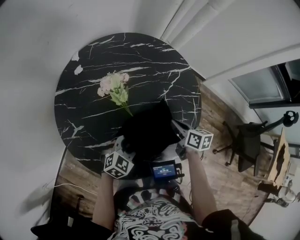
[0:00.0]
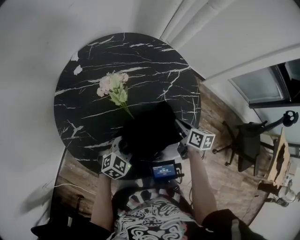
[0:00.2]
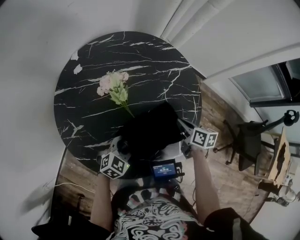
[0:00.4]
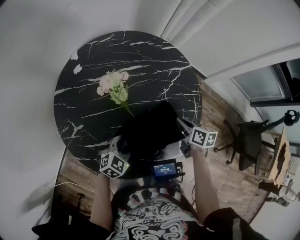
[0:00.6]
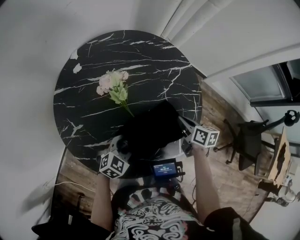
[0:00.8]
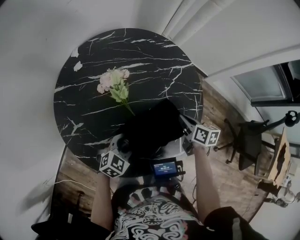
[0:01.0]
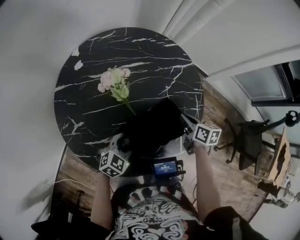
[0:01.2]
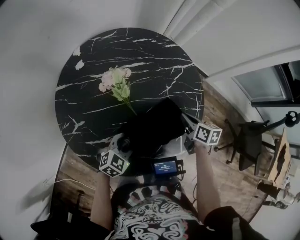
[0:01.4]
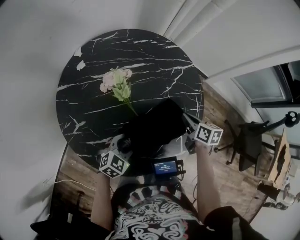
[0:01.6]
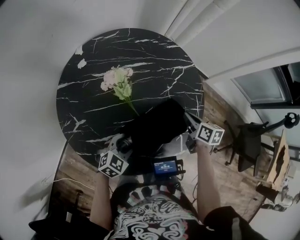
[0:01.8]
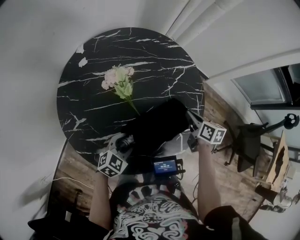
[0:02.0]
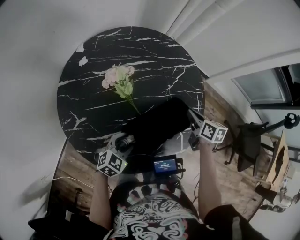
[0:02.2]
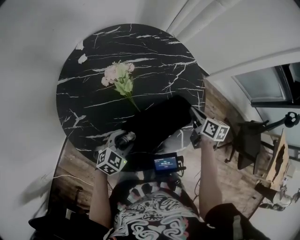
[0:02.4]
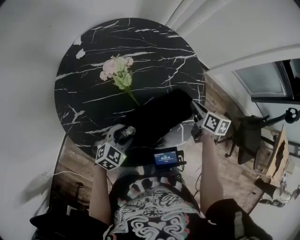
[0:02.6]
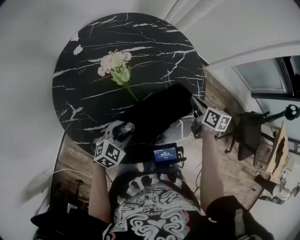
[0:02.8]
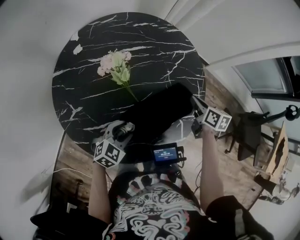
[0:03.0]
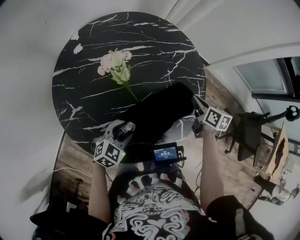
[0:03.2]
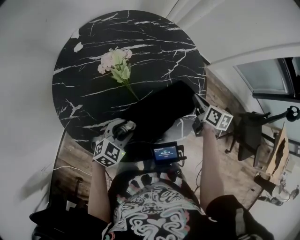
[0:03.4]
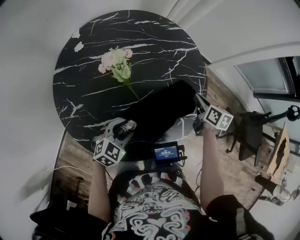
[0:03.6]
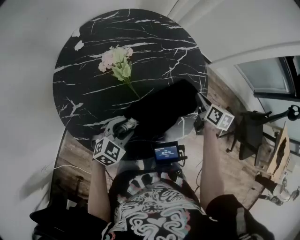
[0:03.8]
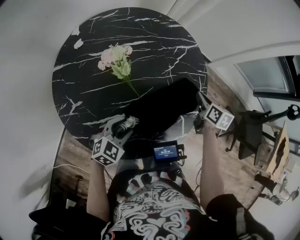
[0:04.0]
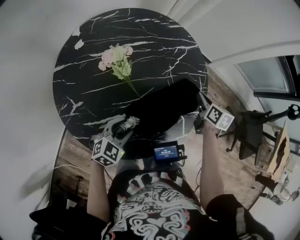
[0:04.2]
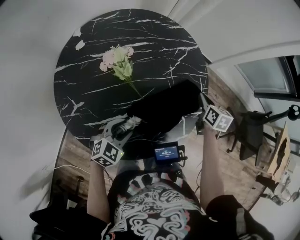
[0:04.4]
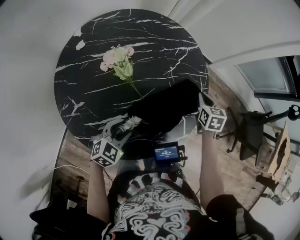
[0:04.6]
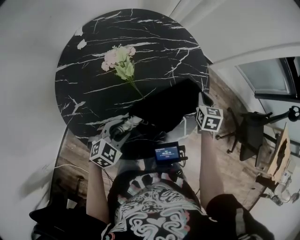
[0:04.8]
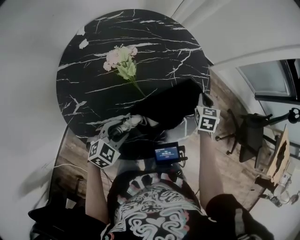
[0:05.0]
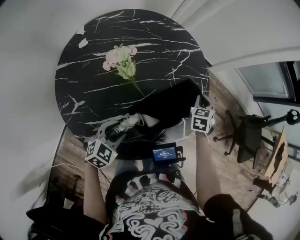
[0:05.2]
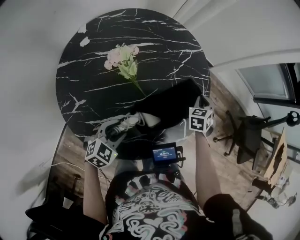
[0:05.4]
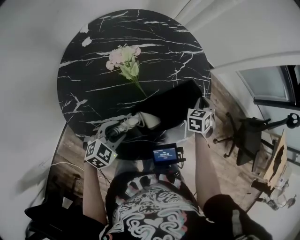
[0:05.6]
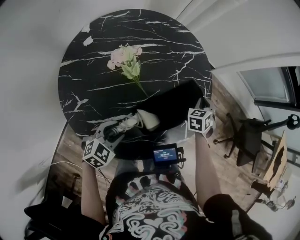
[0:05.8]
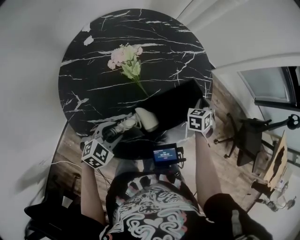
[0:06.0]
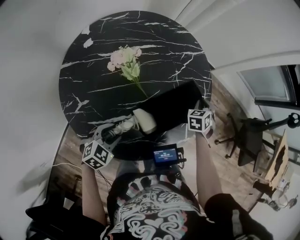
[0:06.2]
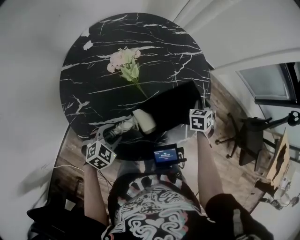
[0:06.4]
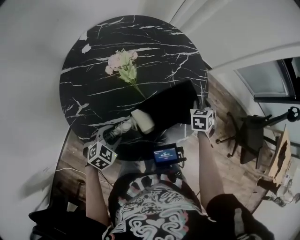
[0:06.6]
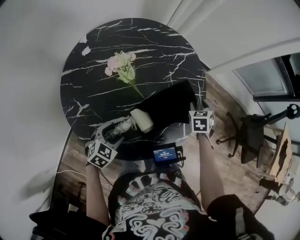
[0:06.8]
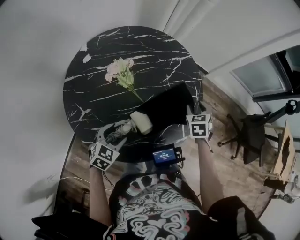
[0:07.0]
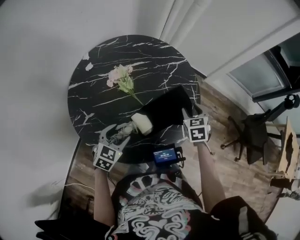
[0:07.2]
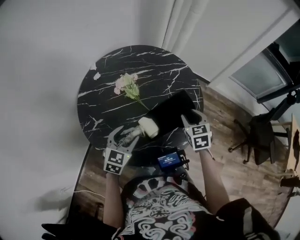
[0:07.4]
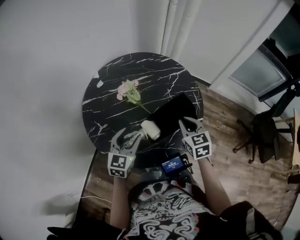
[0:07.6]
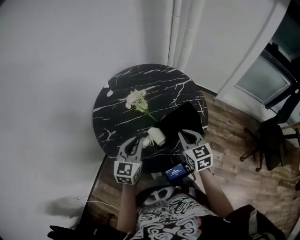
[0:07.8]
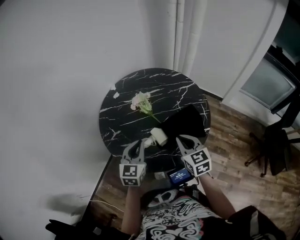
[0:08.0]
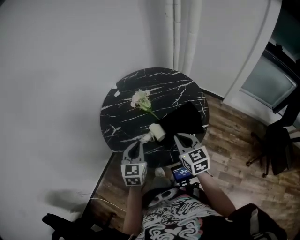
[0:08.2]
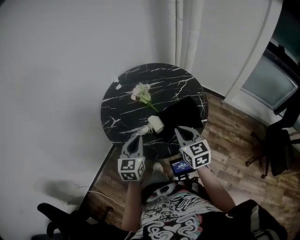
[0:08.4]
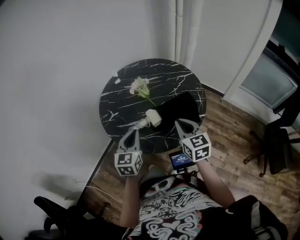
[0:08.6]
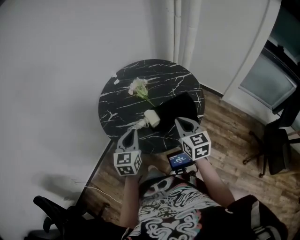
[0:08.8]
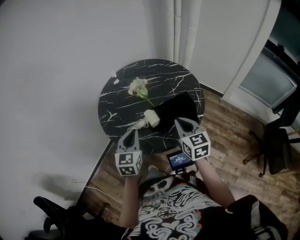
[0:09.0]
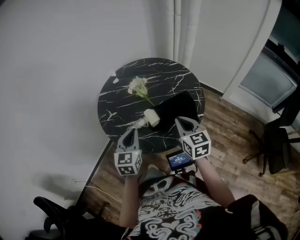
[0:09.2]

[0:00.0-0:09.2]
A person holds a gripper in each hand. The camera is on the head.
0:00.0 to 0:01.6: There are only small adjustments of the grippers.
0:01.6 to 0:03.0: The grippers make only small movements.
0:03.0 to 0:04.6: The right gripper changes its angle by roughly 30 degrees.
0:04.6 to 0:06.2: The right gripper turns by some 30 degrees; the left gripper travels backward by some 5 cm.
0:06.2 to 0:07.6: The left gripper travels upward by roughly 15 cm, and rotates about 40 degrees. The right gripper changes place by some 25 cm, rotates roughly 40 degrees, and opens and closes again.
0:07.6 to 0:09.2: The grippers both shift backward and upward by some 10 cm. The left gripper swivels approximately 20 degrees, and closes up.

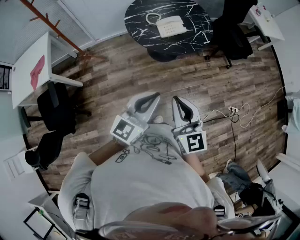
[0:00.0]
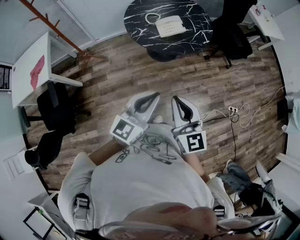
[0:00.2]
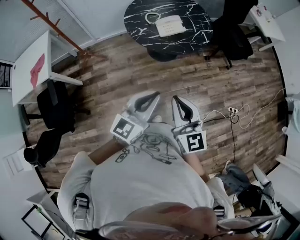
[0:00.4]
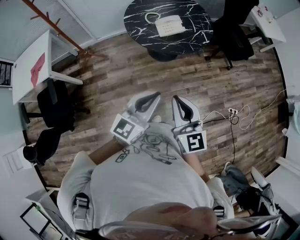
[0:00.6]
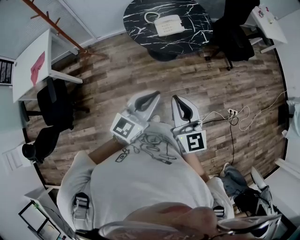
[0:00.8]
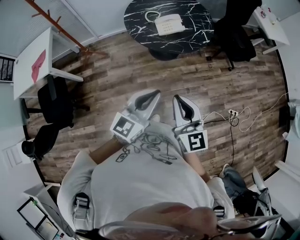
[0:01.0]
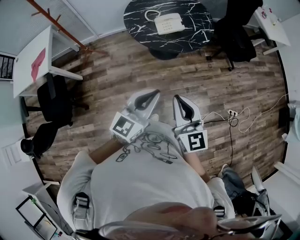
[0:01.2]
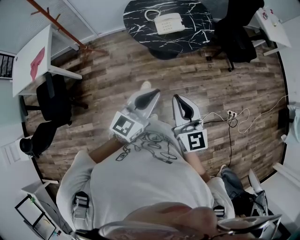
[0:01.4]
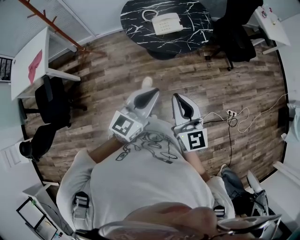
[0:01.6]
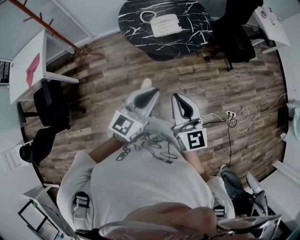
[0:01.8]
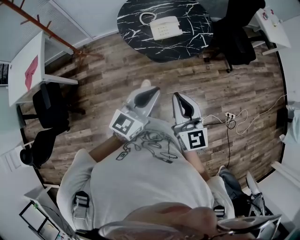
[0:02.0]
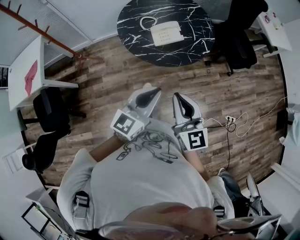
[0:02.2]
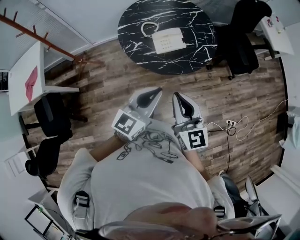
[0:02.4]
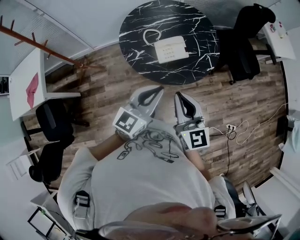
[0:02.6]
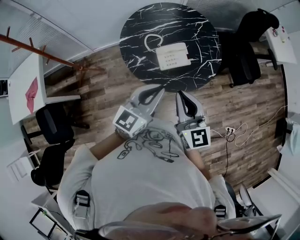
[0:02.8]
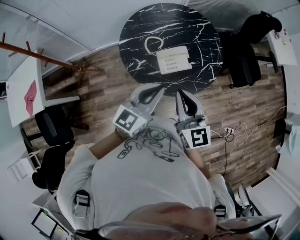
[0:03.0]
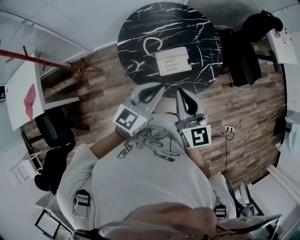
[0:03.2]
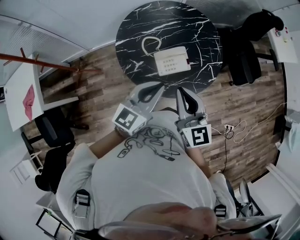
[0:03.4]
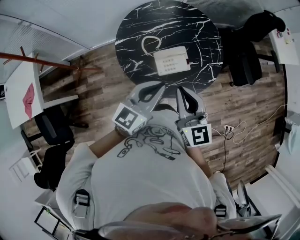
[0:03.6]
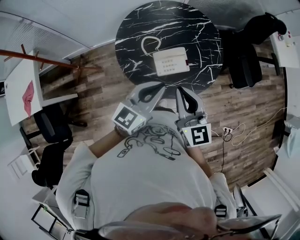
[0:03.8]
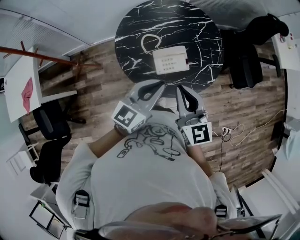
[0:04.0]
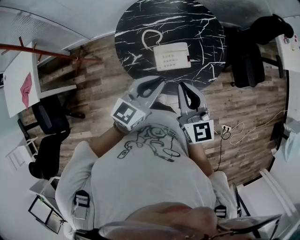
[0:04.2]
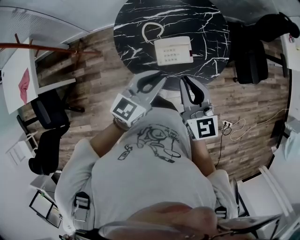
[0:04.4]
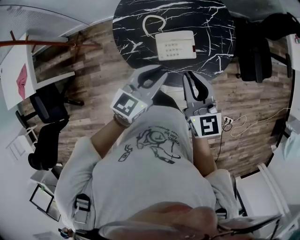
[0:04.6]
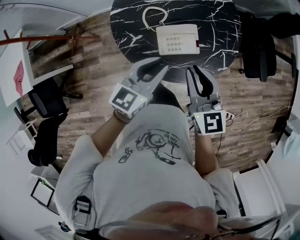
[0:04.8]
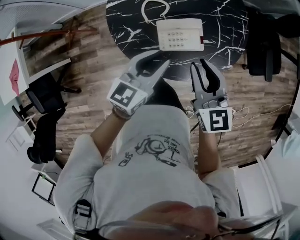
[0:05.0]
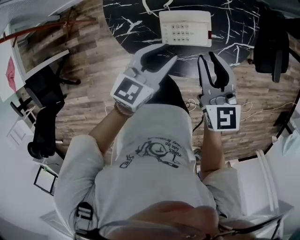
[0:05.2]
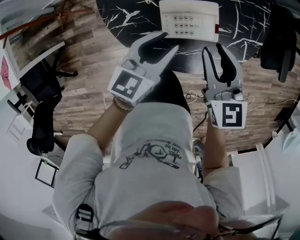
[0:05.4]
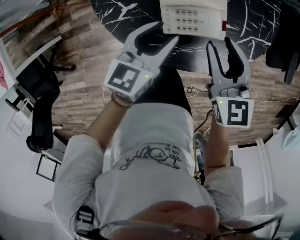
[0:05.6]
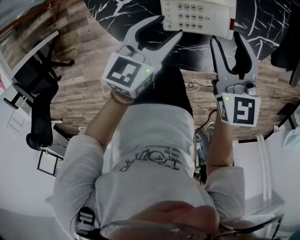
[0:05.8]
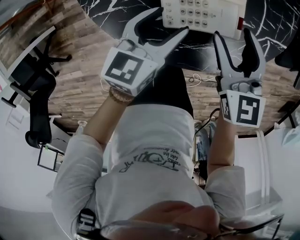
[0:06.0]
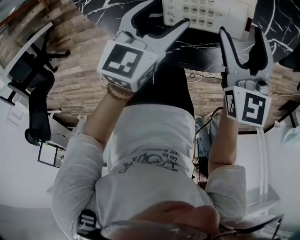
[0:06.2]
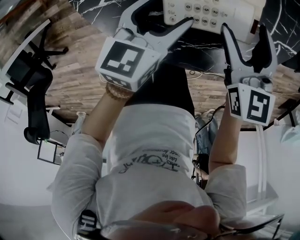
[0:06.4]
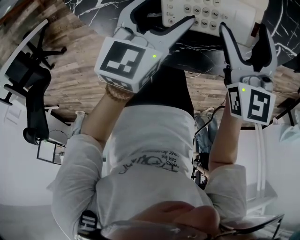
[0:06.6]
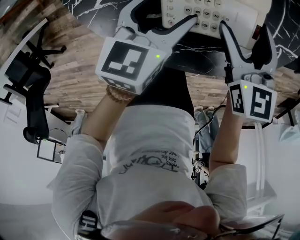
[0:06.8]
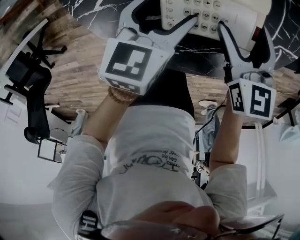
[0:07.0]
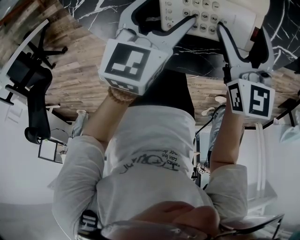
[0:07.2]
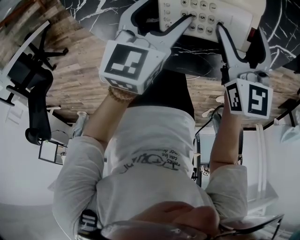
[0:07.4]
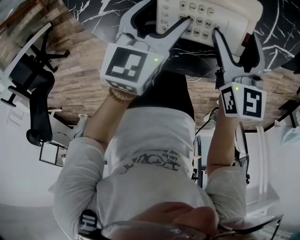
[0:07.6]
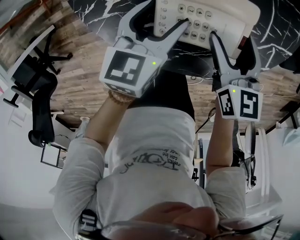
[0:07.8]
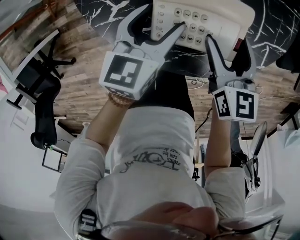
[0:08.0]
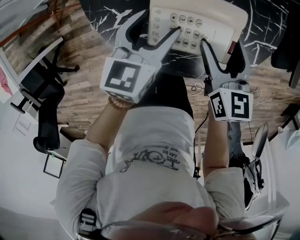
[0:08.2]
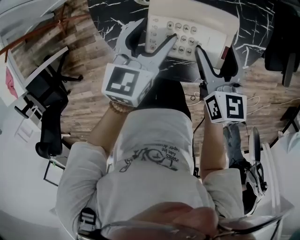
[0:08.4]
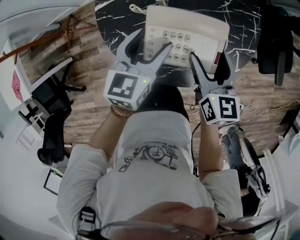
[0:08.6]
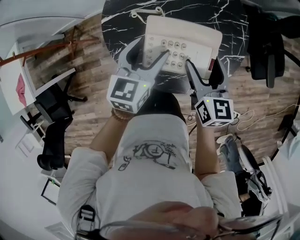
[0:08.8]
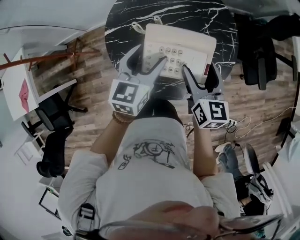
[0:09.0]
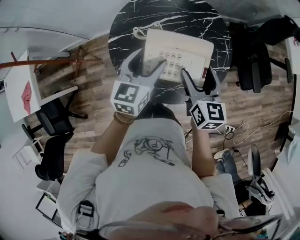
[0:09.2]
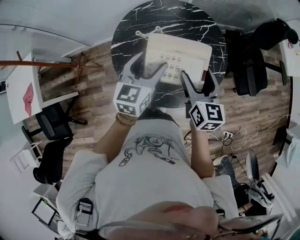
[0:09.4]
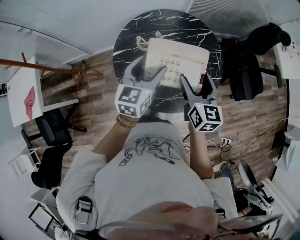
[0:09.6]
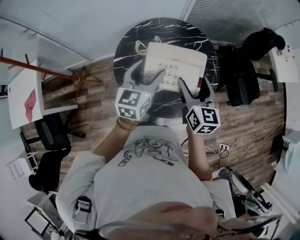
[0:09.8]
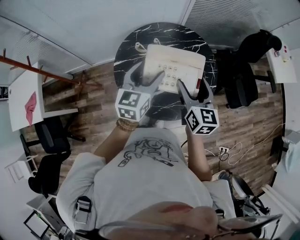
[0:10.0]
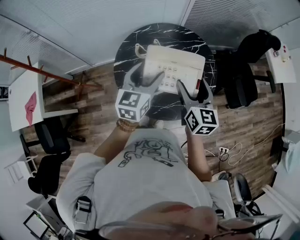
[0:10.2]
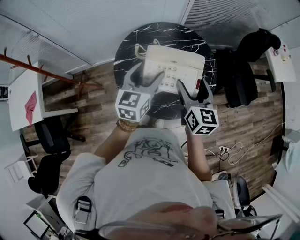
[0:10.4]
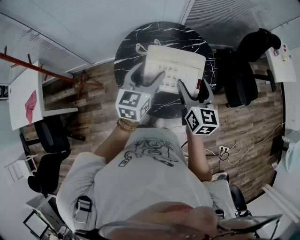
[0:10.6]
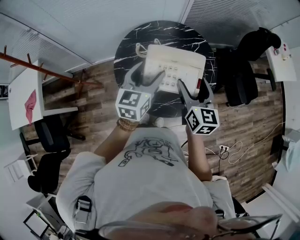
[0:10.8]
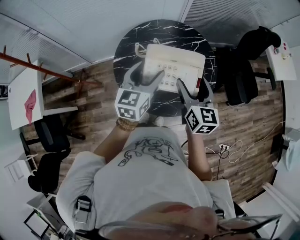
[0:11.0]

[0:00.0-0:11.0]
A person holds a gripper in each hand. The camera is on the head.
0:00.0 to 0:01.6: Both grippers move to the right, some 10 cm.
0:01.6 to 0:03.2: The pair of grippers is taken forward, some 40 cm.
0:03.2 to 0:04.8: Both grippers travel together downward and forward, roughly 15 cm.
0:04.8 to 0:06.2: The grippers both shift downward by approximately 30 cm. The right gripper opens its fingers; the left gripper swivels about 20 degrees, and opens.
0:06.2 to 0:07.8: The grippers stay close to where they were, moving slightly.
0:07.8 to 0:09.4: The two grippers go roughly 35 cm upward. The right gripper swivels about 20 degrees, while the left gripper changes its angle by approximately 20 degrees.
0:09.4 to 0:11.0: Both grippers move upward, approximately 5 cm.

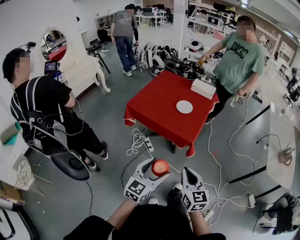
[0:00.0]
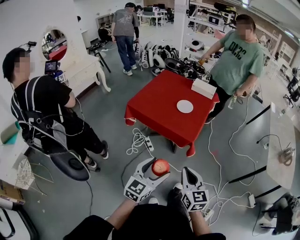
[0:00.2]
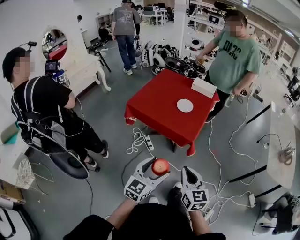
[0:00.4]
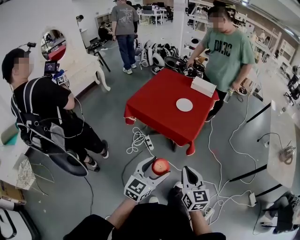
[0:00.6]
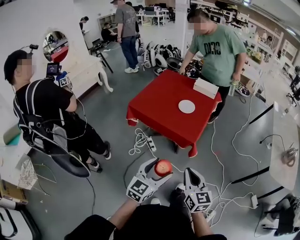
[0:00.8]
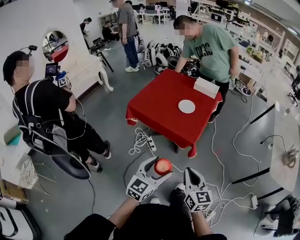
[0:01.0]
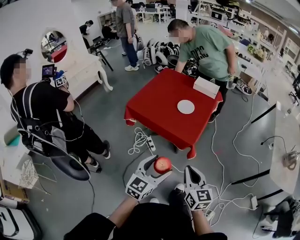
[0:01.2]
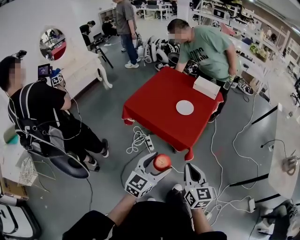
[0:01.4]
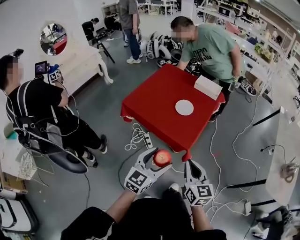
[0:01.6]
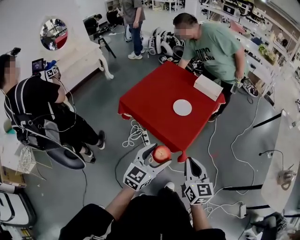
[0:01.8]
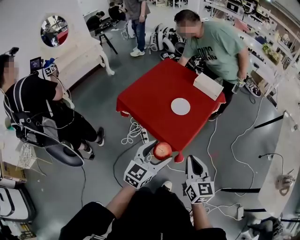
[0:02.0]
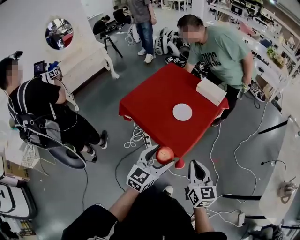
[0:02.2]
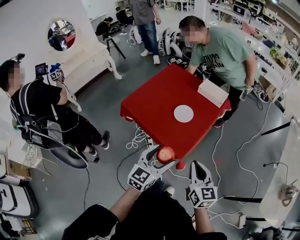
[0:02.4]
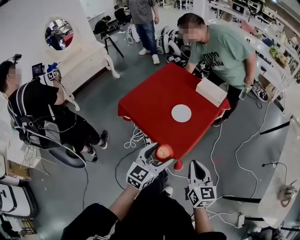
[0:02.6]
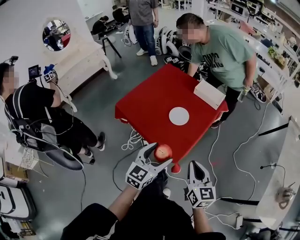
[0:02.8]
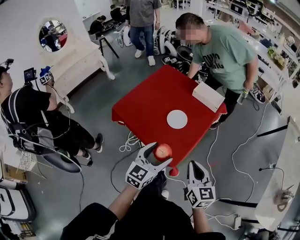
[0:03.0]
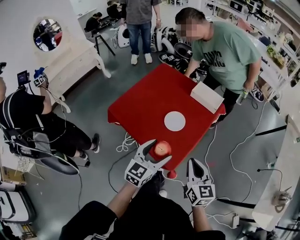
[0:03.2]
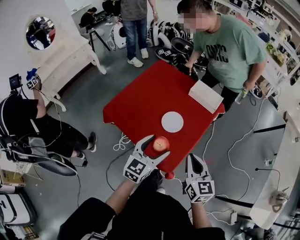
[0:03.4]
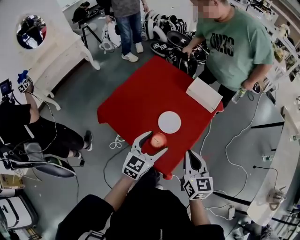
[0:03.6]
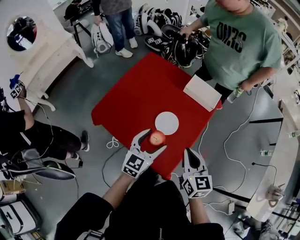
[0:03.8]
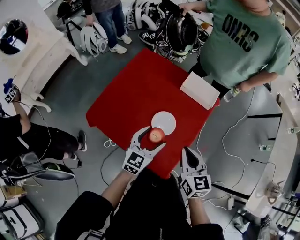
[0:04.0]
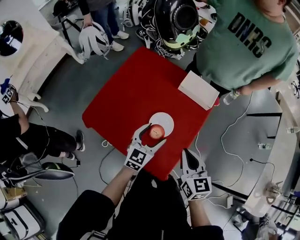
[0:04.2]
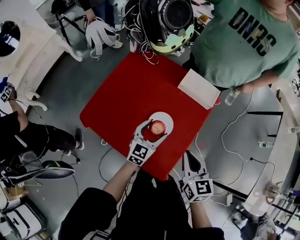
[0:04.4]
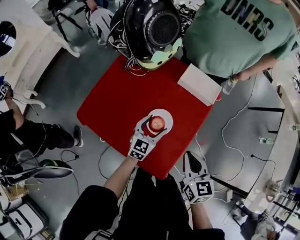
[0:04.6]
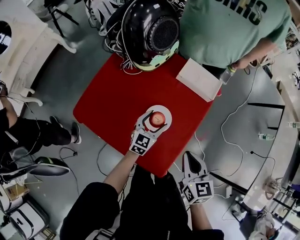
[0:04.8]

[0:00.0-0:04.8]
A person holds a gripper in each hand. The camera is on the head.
0:00.0 to 0:01.6: The two grippers go roughly 15 cm forward.
0:01.6 to 0:03.2: The left gripper heads forward, covering about 25 cm. Meanwhile the right gripper travels forward and to the right by about 25 cm.
0:03.2 to 0:04.8: The left gripper travels forward and downward by approximately 35 cm, while the right gripper heads forward, covering roughly 15 cm.
